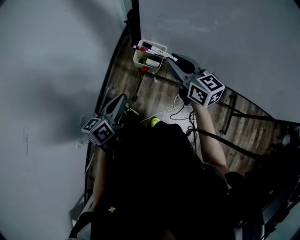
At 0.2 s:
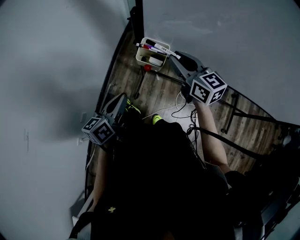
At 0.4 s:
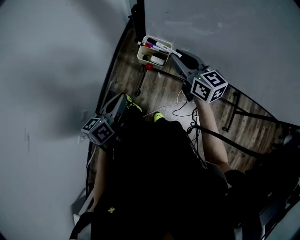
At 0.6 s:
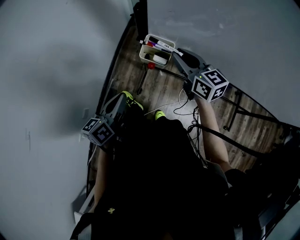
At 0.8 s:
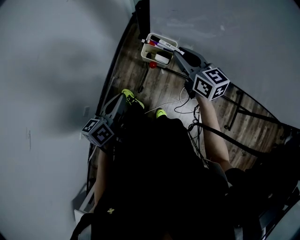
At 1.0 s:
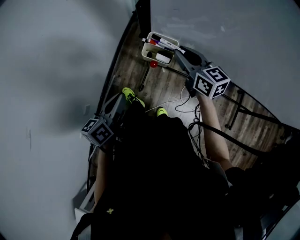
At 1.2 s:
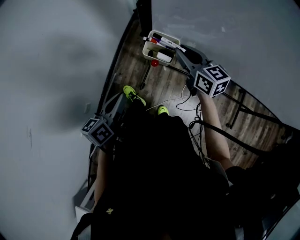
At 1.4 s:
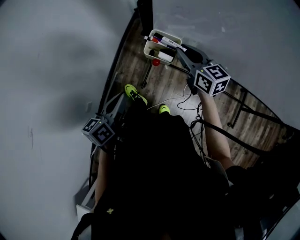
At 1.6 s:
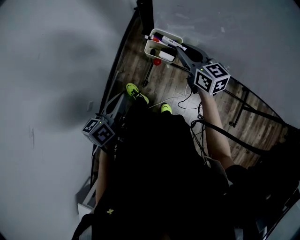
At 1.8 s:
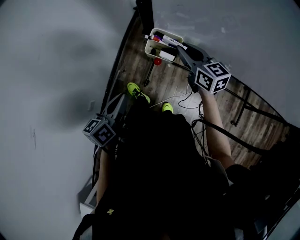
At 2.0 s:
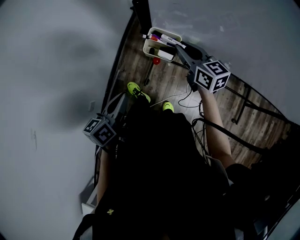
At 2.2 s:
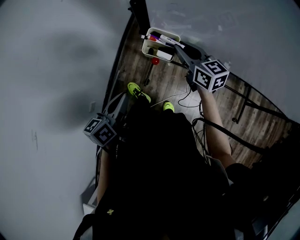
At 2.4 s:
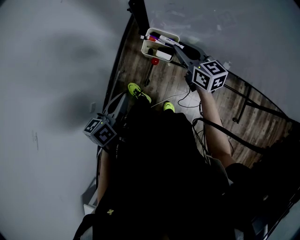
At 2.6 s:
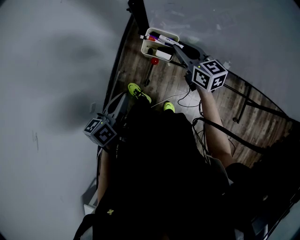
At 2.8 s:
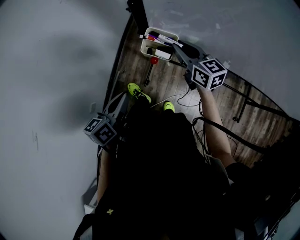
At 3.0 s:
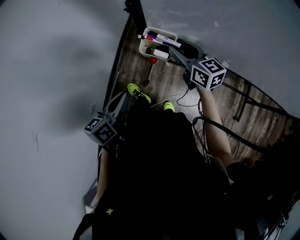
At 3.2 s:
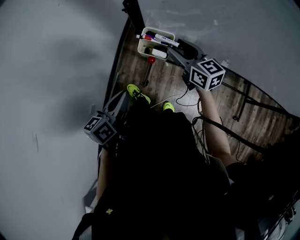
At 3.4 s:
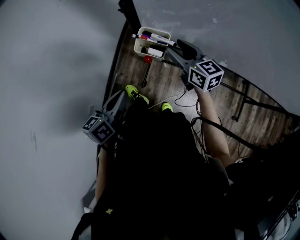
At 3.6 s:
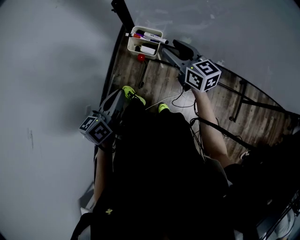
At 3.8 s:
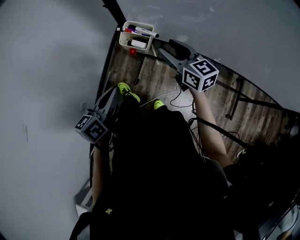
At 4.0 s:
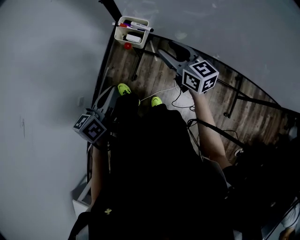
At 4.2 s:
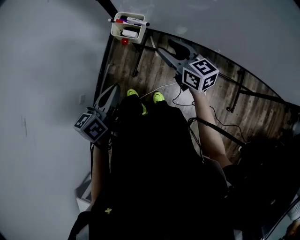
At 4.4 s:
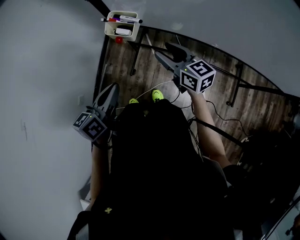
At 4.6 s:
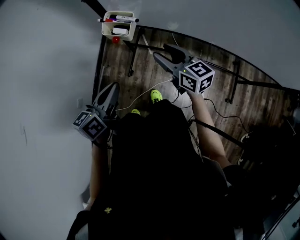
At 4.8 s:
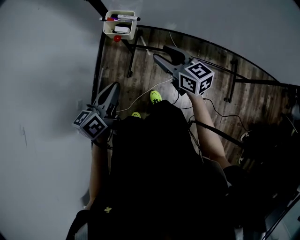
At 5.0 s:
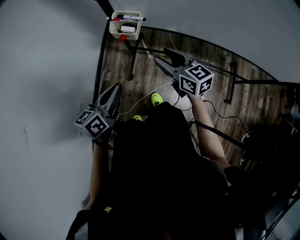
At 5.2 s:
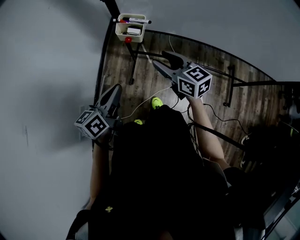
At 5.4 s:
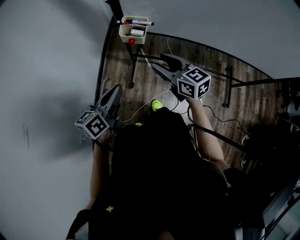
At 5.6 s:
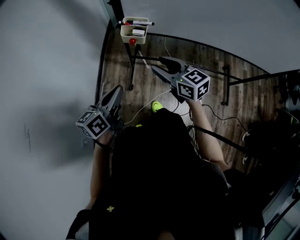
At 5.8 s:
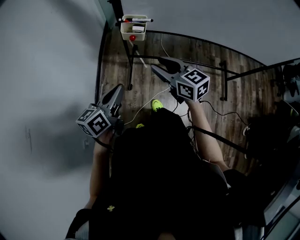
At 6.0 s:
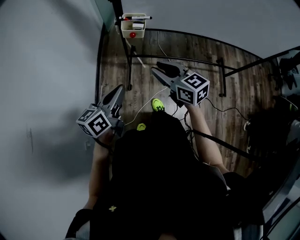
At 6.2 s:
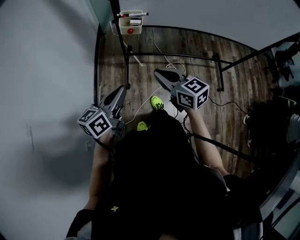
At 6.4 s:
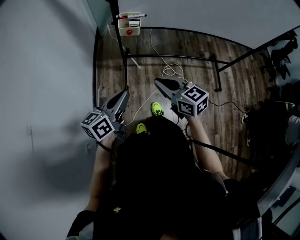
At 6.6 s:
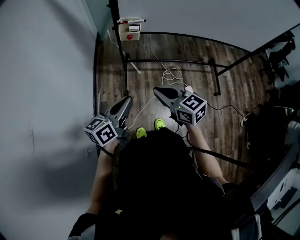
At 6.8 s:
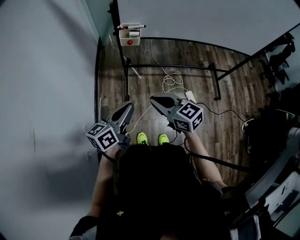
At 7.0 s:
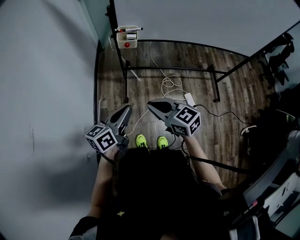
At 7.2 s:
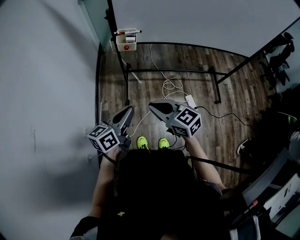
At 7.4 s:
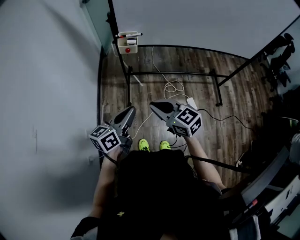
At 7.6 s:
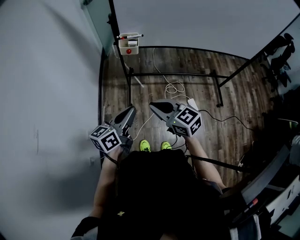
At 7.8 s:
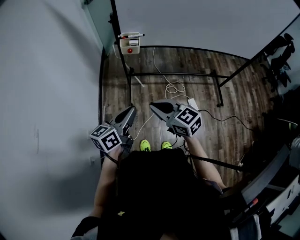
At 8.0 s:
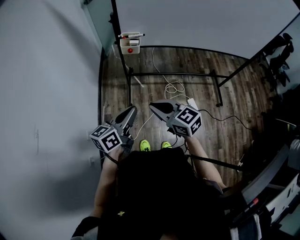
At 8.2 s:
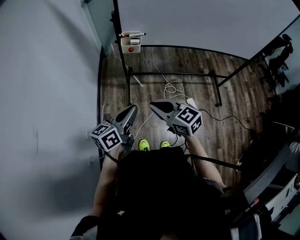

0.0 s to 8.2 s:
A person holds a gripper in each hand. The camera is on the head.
0.0 to 1.6 s: The right gripper is displaced downward by approximately 10 cm.
1.6 to 3.2 s: The right gripper opens.
3.2 to 5.0 s: The left gripper travels backward and to the right by roughly 10 cm, while the right gripper is displaced backward by approximately 15 cm.
5.0 to 6.6 s: The left gripper moves backward and to the left, roughly 15 cm, and changes its angle by roughly 20 degrees; the right gripper travels backward and to the left by roughly 25 cm, and closes up.
6.6 to 8.2 s: There are only small adjustments of the grippers.

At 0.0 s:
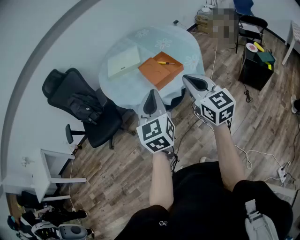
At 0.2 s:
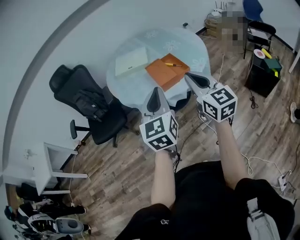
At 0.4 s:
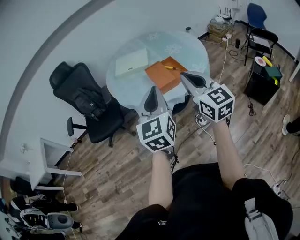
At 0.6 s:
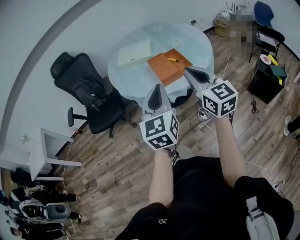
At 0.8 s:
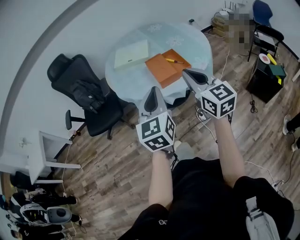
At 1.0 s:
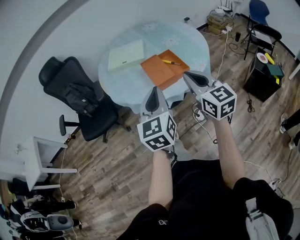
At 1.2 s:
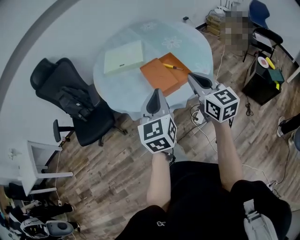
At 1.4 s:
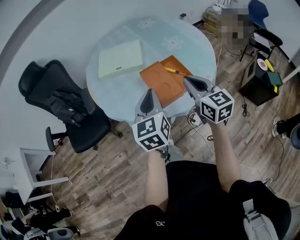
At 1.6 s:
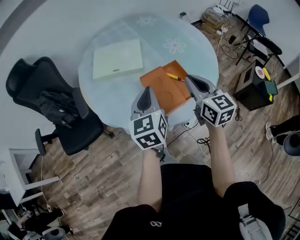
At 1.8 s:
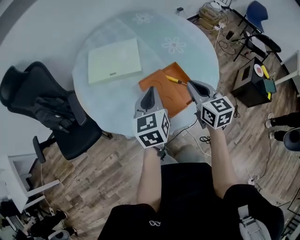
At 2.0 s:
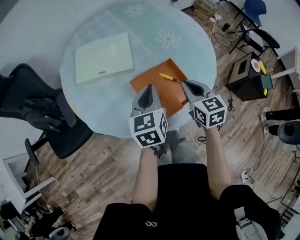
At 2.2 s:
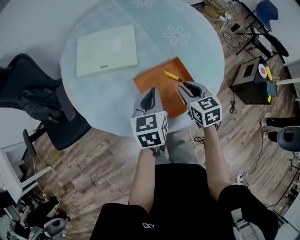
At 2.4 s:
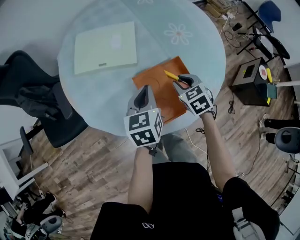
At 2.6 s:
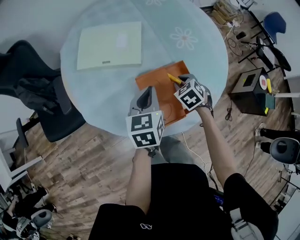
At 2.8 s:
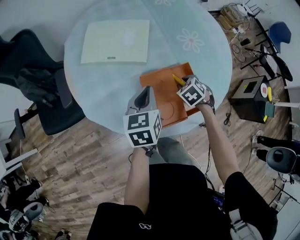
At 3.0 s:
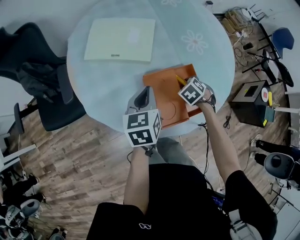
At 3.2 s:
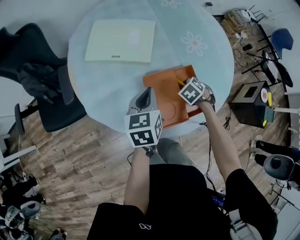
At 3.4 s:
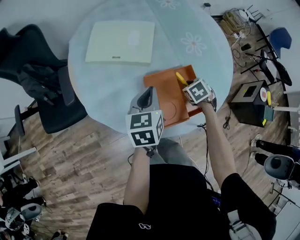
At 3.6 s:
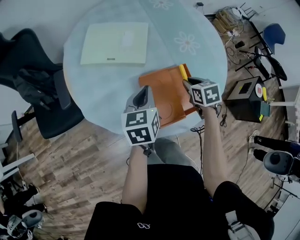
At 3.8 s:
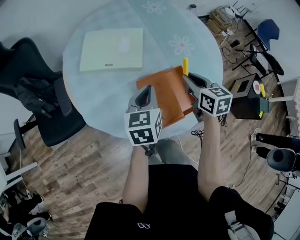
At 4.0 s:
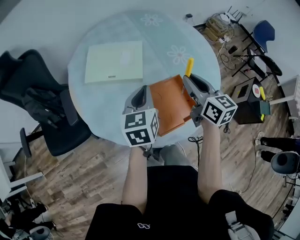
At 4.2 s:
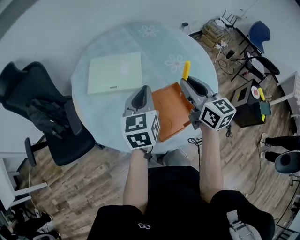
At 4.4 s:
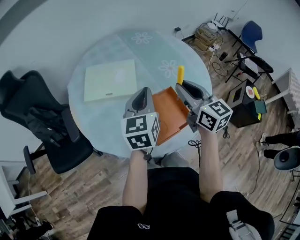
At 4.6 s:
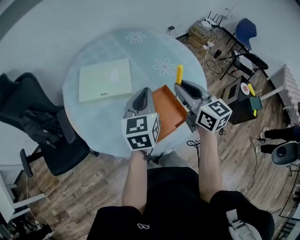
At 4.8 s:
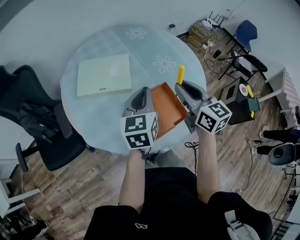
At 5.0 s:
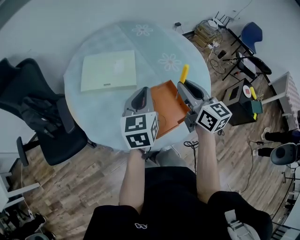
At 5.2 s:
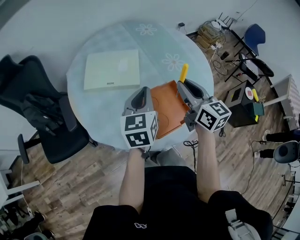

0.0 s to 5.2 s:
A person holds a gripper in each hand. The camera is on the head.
0.0 to 1.8 s: The grippers both shift forward by about 40 cm. The left gripper changes its angle by roughly 20 degrees. The right gripper swivels roughly 20 degrees.
1.8 to 3.4 s: The left gripper is displaced downward by some 10 cm. The right gripper is displaced downward by roughly 25 cm, and angles its fingers downward, by roughly 50 degrees.
3.4 to 5.2 s: The left gripper heads upward, covering about 10 cm. Meanwhile the right gripper is displaced upward by approximately 30 cm, and tips its fingers upward by some 60 degrees.

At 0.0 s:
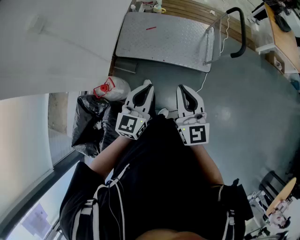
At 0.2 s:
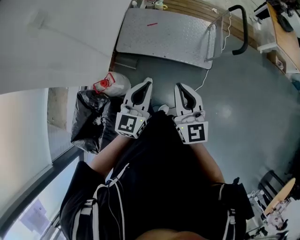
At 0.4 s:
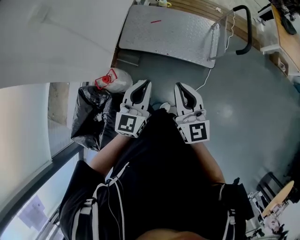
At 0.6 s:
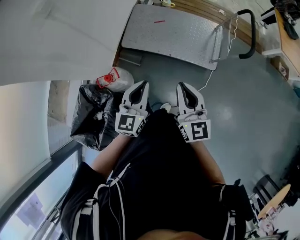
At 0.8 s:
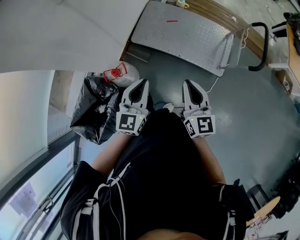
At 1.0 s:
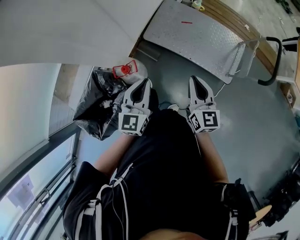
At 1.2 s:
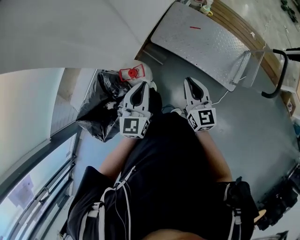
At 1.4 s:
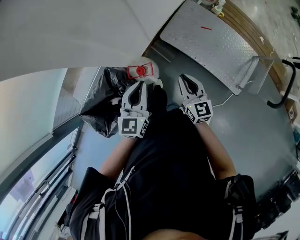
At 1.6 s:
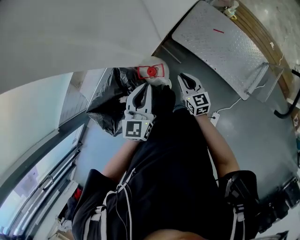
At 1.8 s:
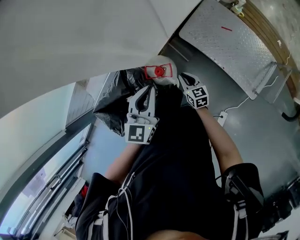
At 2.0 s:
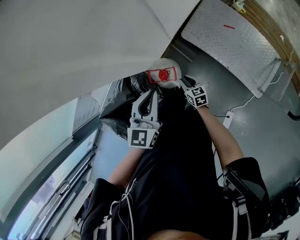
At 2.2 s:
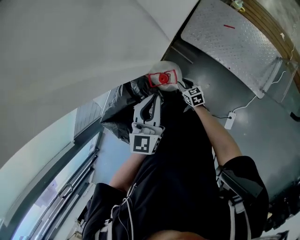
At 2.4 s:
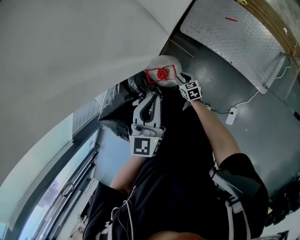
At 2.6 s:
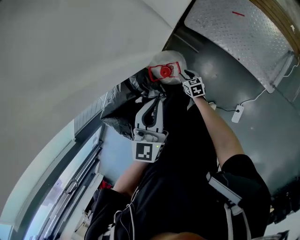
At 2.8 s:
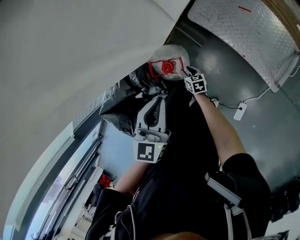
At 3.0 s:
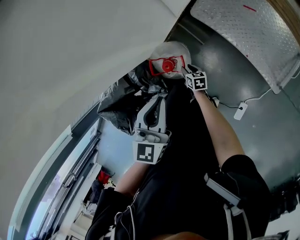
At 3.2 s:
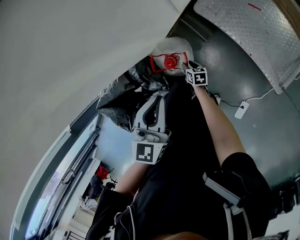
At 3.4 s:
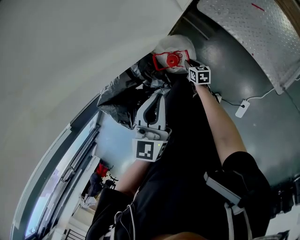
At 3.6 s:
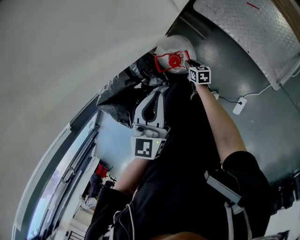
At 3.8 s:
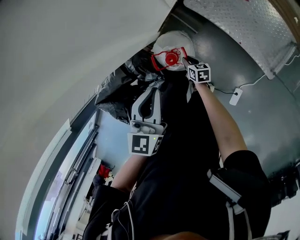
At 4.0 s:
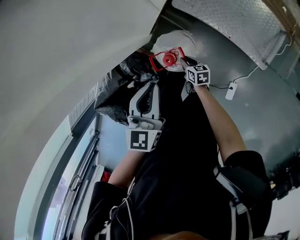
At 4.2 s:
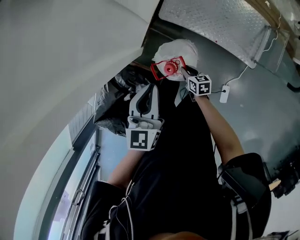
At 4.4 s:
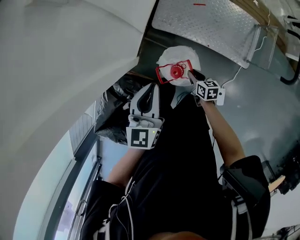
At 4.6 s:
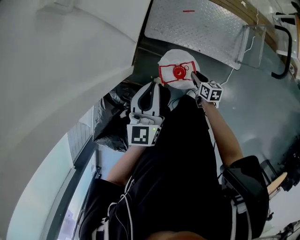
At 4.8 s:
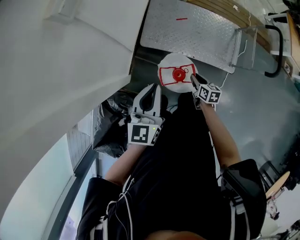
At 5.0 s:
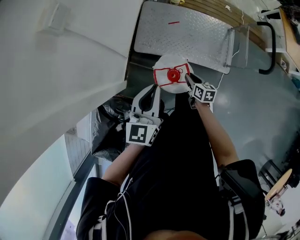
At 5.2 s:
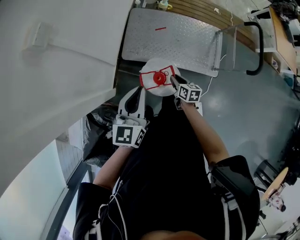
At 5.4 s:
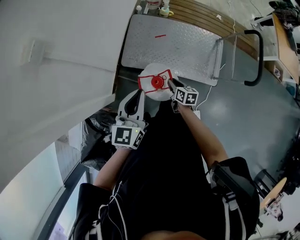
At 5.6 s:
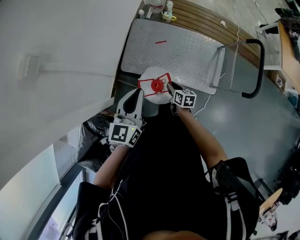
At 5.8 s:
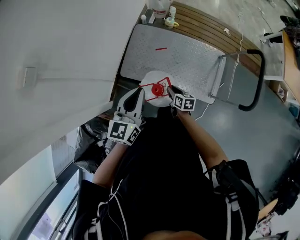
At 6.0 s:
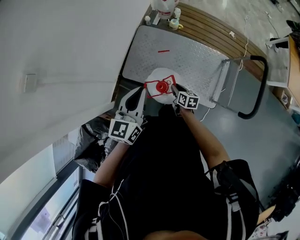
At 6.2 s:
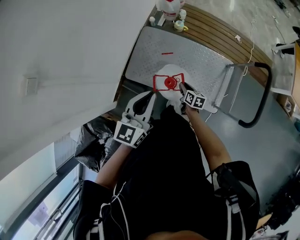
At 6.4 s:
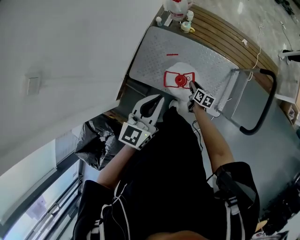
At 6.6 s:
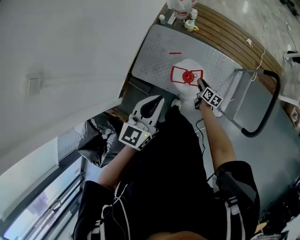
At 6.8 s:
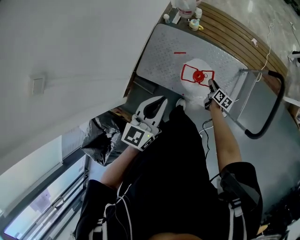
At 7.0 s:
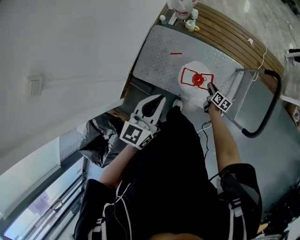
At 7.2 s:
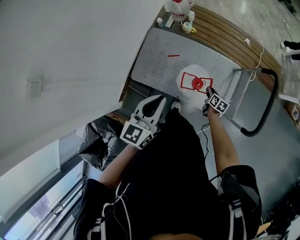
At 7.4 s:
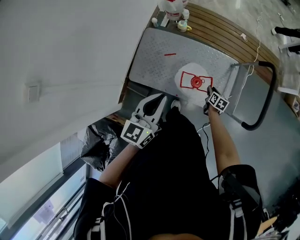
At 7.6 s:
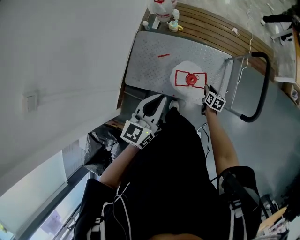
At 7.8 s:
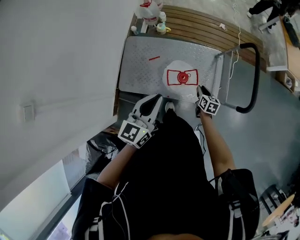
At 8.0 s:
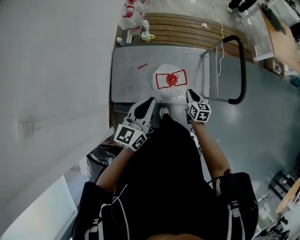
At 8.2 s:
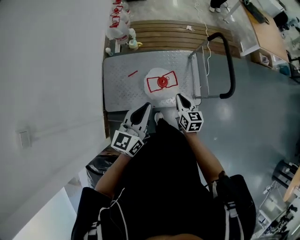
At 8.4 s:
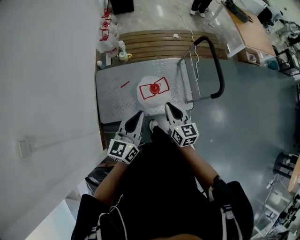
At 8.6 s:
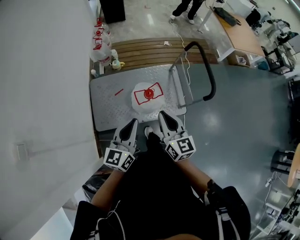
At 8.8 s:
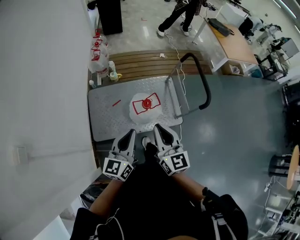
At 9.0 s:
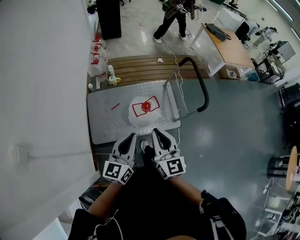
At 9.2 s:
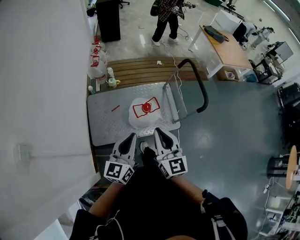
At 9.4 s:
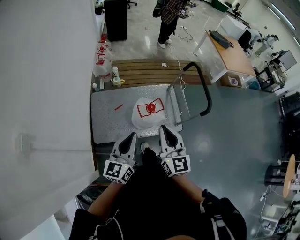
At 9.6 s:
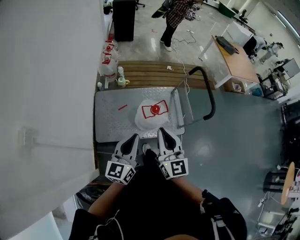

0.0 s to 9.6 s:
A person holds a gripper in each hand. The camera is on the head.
0.0 to 1.6 s: The right gripper changes place by some 40 cm, and turns by some 40 degrees. The left gripper ends up roughly 35 cm from where it was, and turns by roughly 40 degrees.
1.6 to 3.2 s: The right gripper shifts approximately 40 cm downward, turns by about 40 degrees, and opens; the left gripper is displaced downward and forward by some 15 cm.
3.2 to 4.8 s: The right gripper is displaced upward by approximately 30 cm, and rotates approximately 40 degrees; the left gripper is displaced upward by approximately 15 cm, and changes its angle by roughly 30 degrees.
4.8 to 6.4 s: Both grippers travel together to the right and forward, about 40 cm.
6.4 to 8.0 s: The left gripper travels to the right by roughly 5 cm, while the right gripper heads to the right, upward and backward, covering approximately 20 cm, and swivels some 20 degrees.
8.0 to 9.6 s: The right gripper is displaced upward, backward and to the left by roughly 40 cm, and tips its fingers upward by approximately 30 degrees. Meanwhile the left gripper goes about 15 cm backward, to the left and upward.
